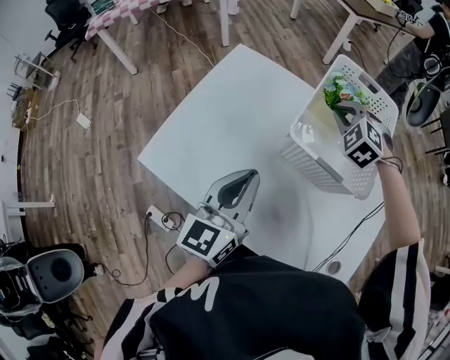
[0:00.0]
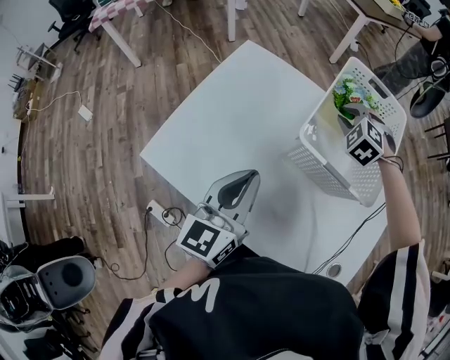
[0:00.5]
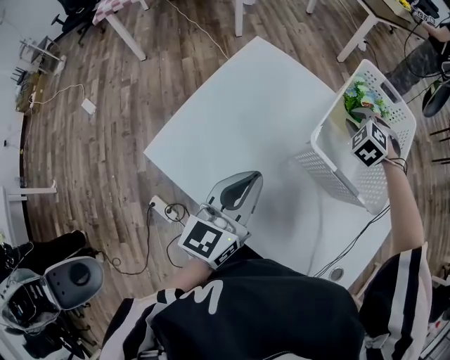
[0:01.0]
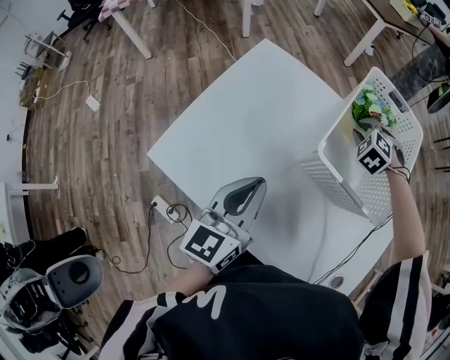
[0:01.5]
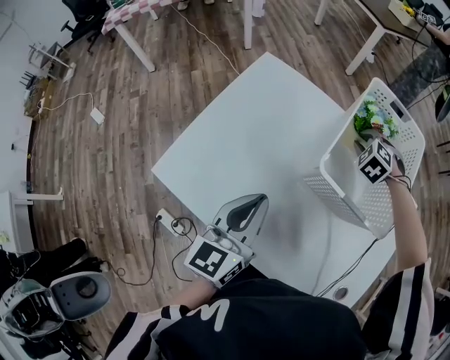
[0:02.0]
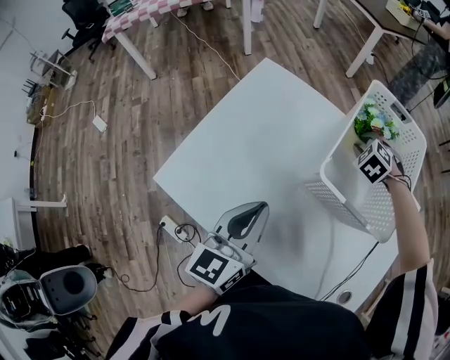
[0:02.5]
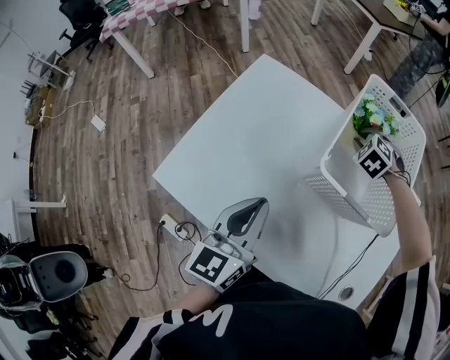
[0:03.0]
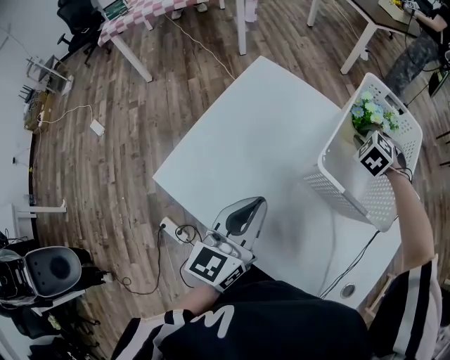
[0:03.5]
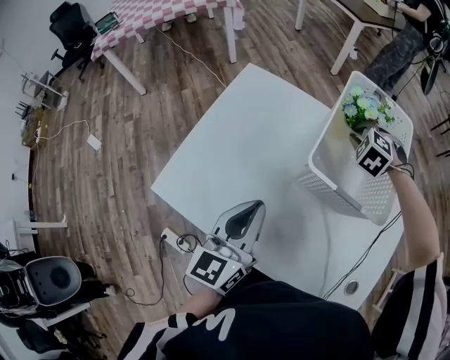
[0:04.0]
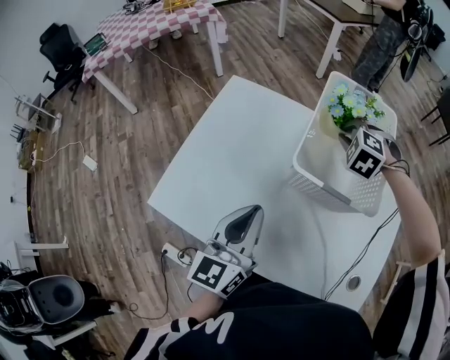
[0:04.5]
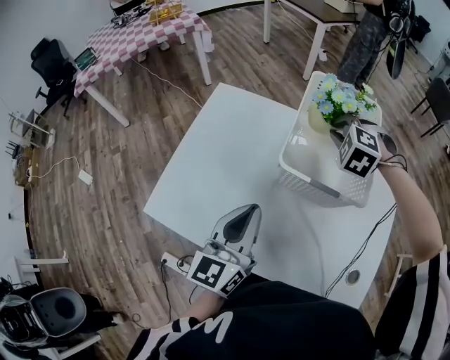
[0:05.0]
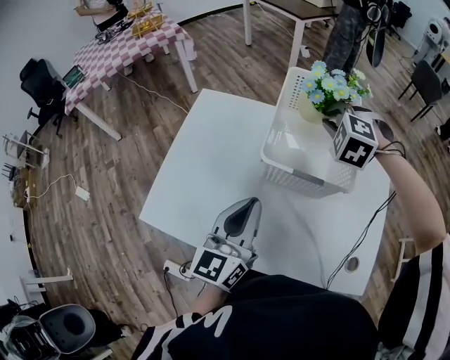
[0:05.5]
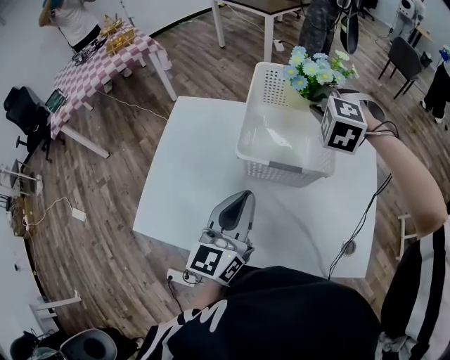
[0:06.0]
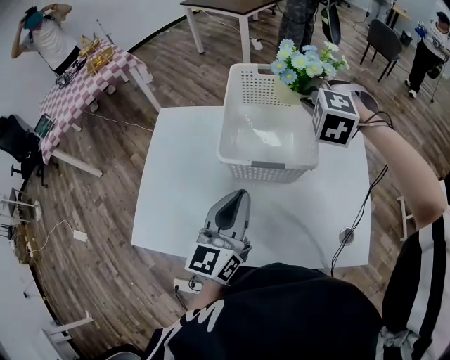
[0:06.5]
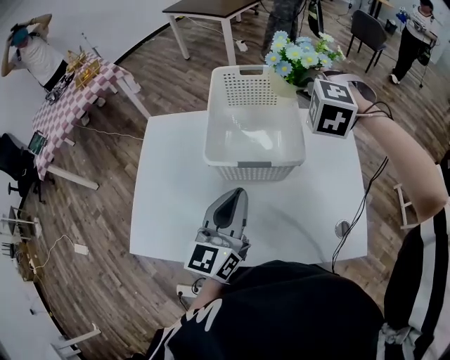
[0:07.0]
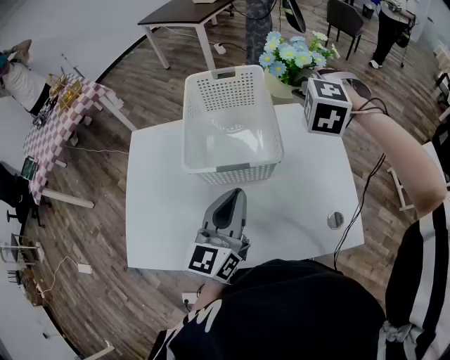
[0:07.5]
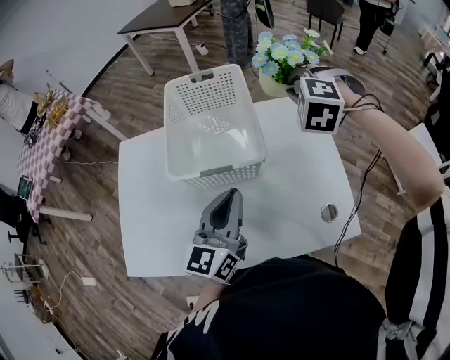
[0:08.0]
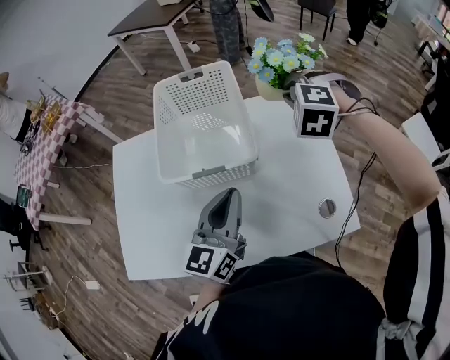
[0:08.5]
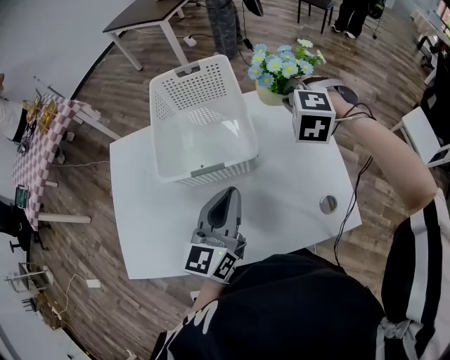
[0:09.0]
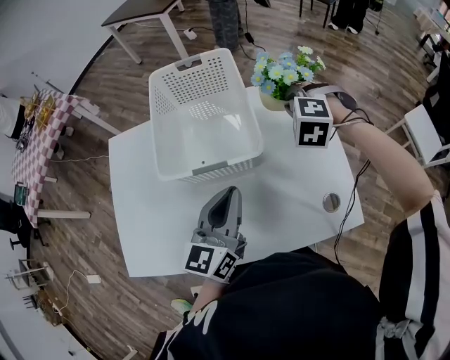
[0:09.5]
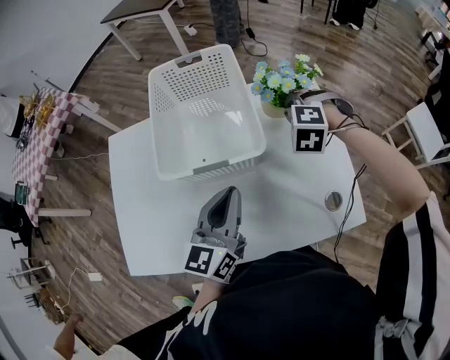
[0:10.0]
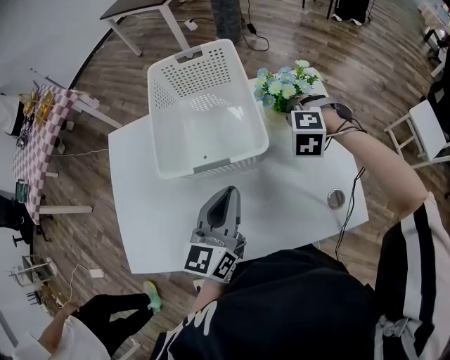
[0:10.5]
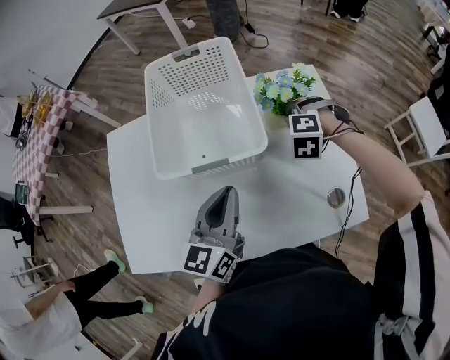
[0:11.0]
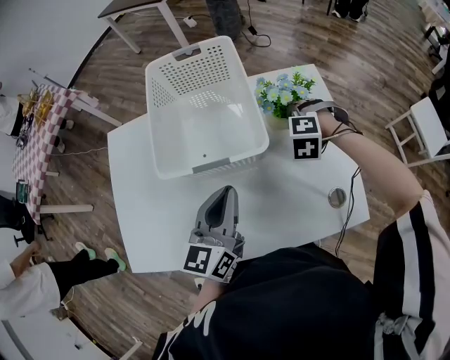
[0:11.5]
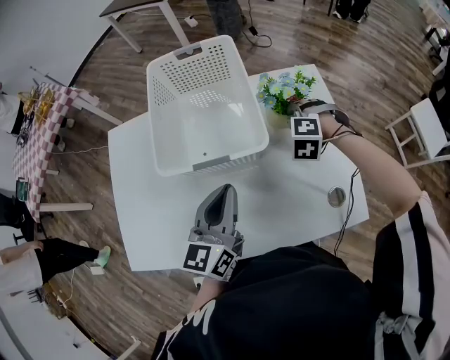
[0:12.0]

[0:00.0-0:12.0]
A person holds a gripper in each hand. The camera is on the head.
0:00.0 to 0:02.0: The right gripper shifts about 10 cm downward.
0:02.0 to 0:04.0: The grippers make only small movements.
0:04.0 to 0:06.0: The right gripper travels upward, to the right and backward by some 15 cm; the left gripper shifts roughly 10 cm to the right.
0:06.0 to 0:08.0: The left gripper shifts roughly 10 cm to the right. The right gripper moves to the right, roughly 15 cm.
0:08.0 to 0:10.0: The right gripper is displaced downward by some 15 cm.
0:10.0 to 0:12.0: The right gripper is displaced downward by roughly 5 cm.

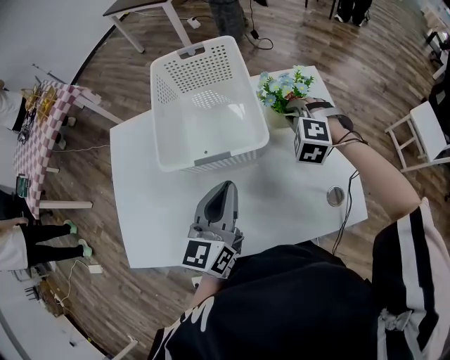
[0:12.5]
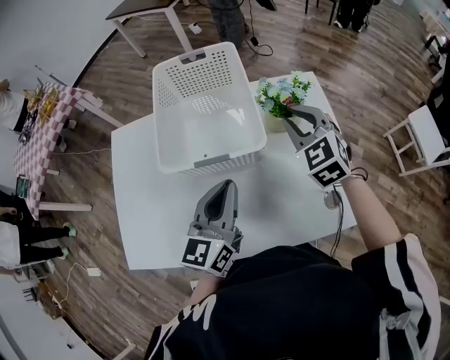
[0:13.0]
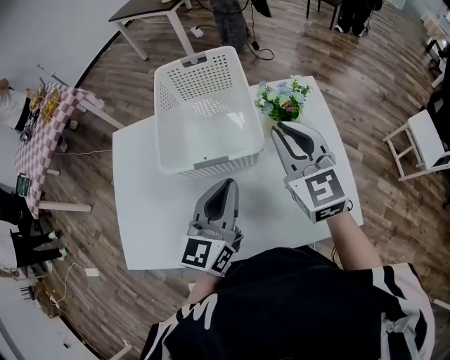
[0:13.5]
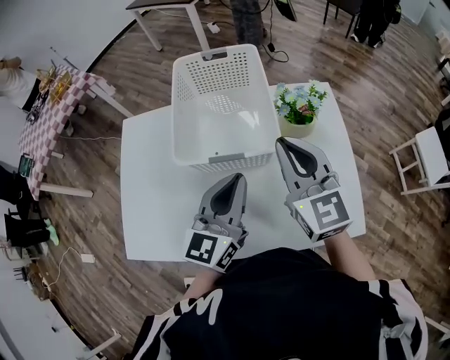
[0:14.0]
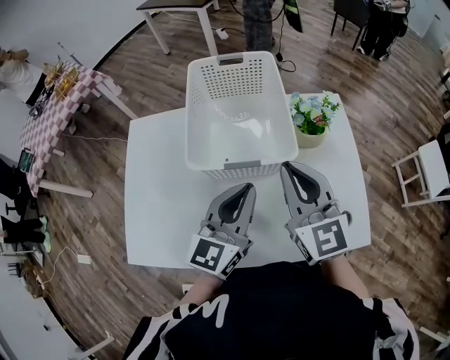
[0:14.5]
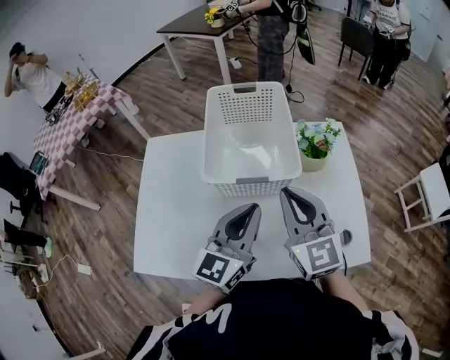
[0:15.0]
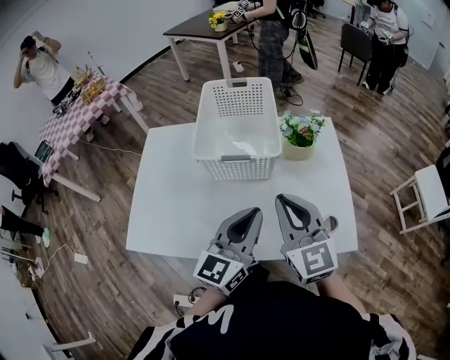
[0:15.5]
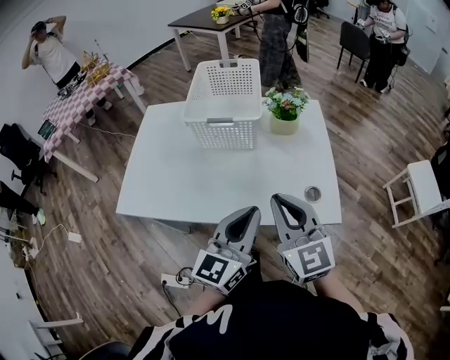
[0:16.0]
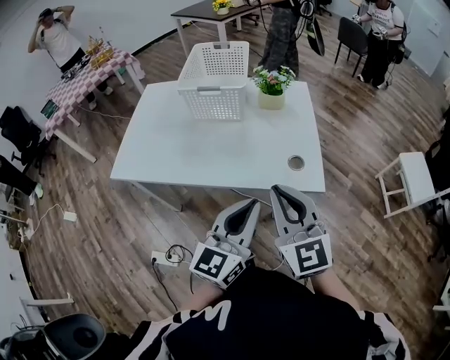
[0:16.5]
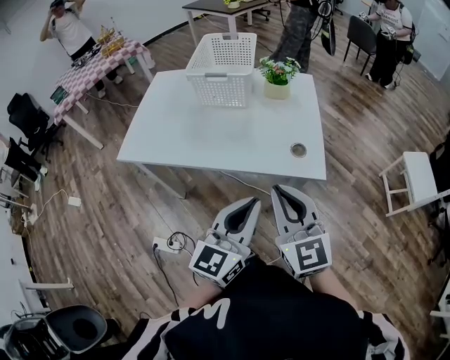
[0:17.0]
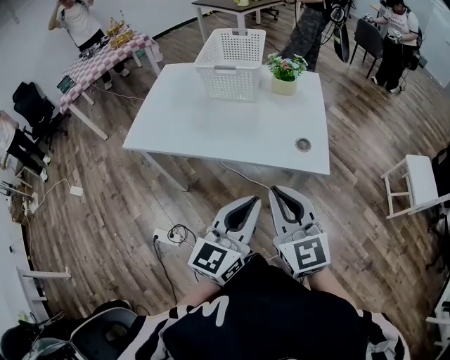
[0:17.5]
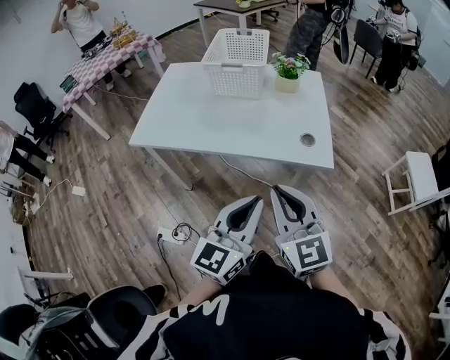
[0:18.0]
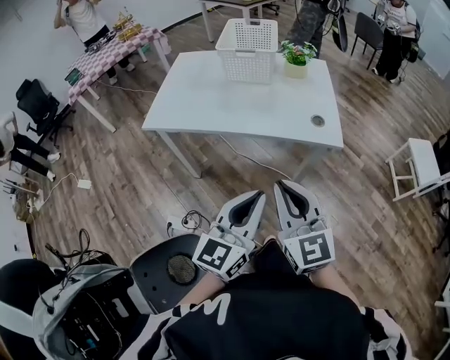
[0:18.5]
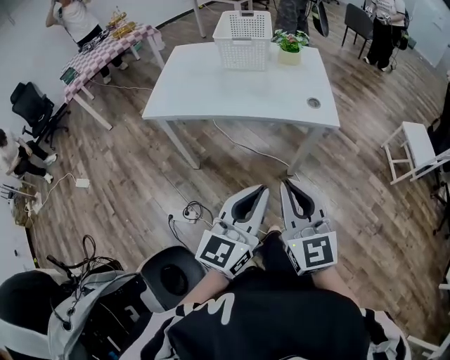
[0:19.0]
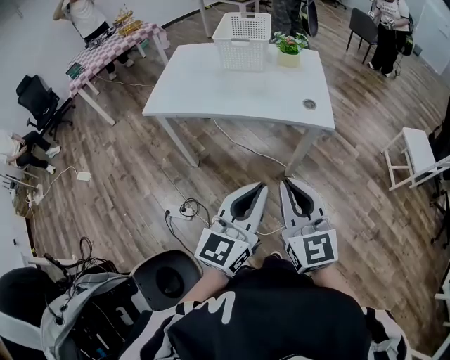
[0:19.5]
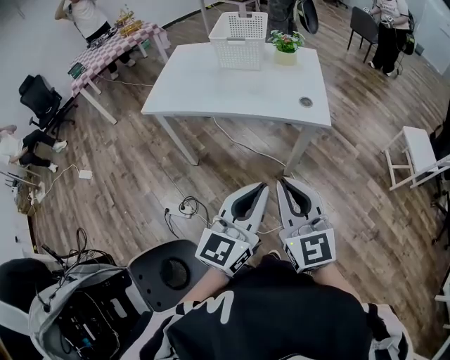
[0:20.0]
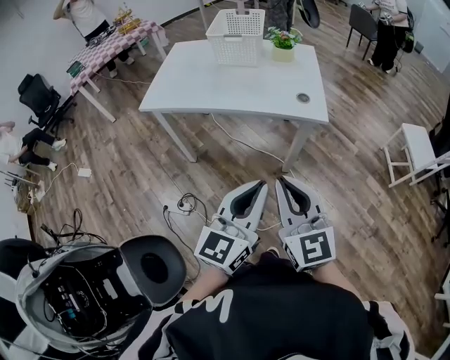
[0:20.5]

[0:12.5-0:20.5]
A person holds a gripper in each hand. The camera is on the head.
0:12.5 to 0:14.5: The right gripper is displaced upward, backward and to the left by roughly 25 cm, and angles its fingers upward, by approximately 50 degrees.
0:14.5 to 0:16.5: The right gripper moves backward, roughly 30 cm. Meanwhile the left gripper goes approximately 35 cm backward and to the right.
0:16.5 to 0:18.5: Both grippers travel together backward and to the left, approximately 20 cm.
0:18.5 to 0:20.5: Both grippers travel together backward and to the right, about 10 cm.

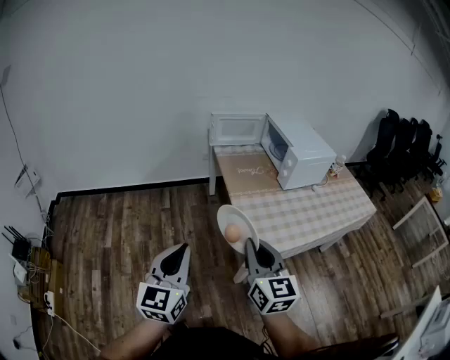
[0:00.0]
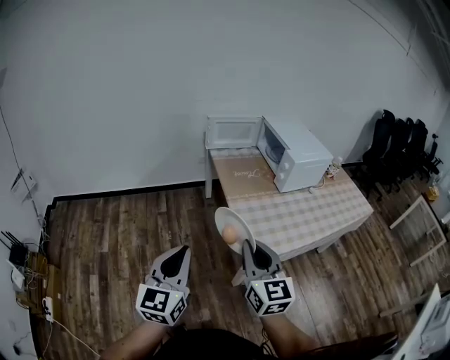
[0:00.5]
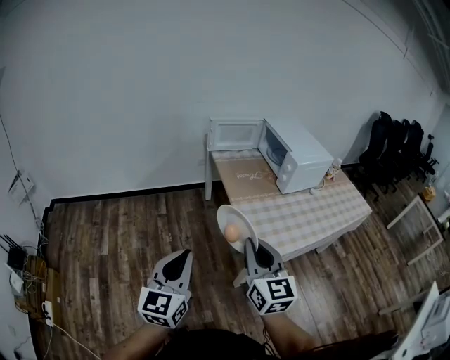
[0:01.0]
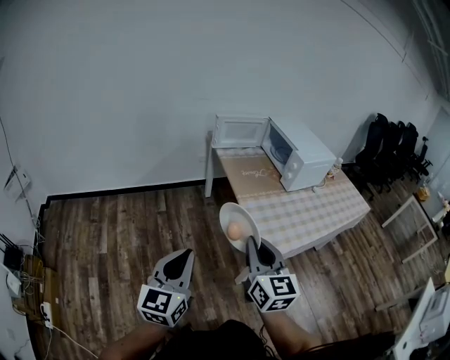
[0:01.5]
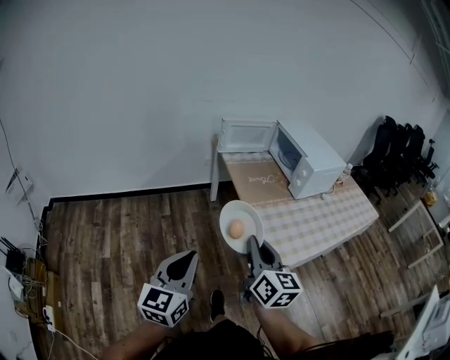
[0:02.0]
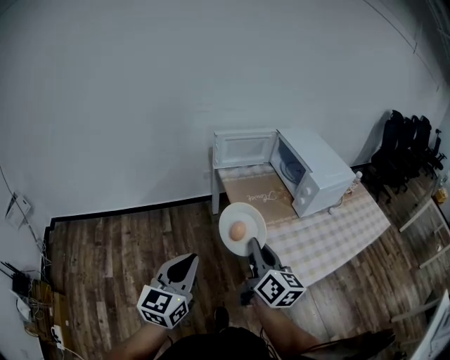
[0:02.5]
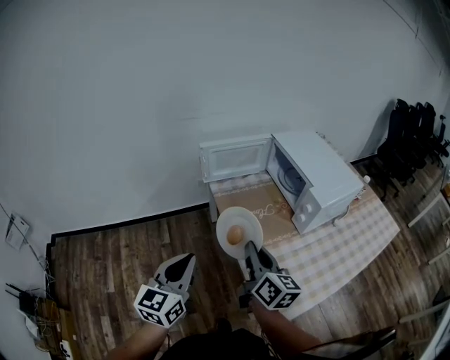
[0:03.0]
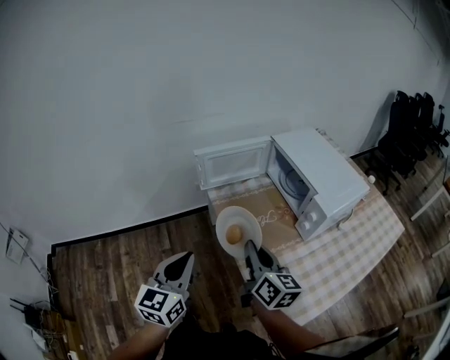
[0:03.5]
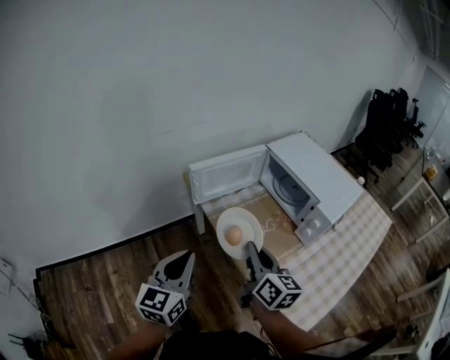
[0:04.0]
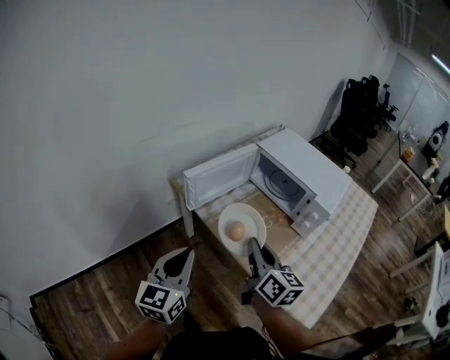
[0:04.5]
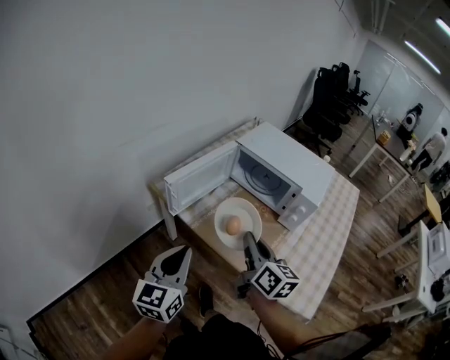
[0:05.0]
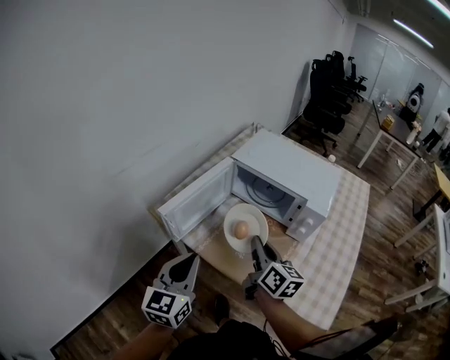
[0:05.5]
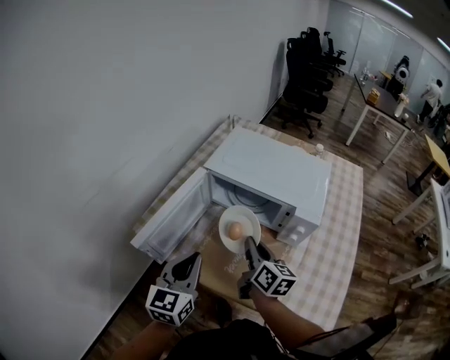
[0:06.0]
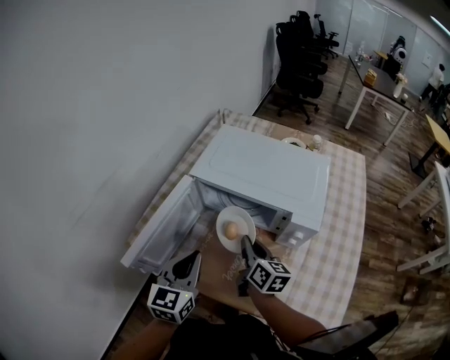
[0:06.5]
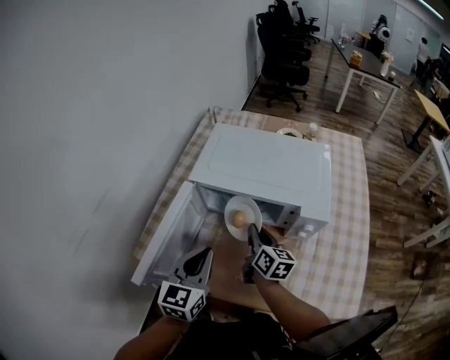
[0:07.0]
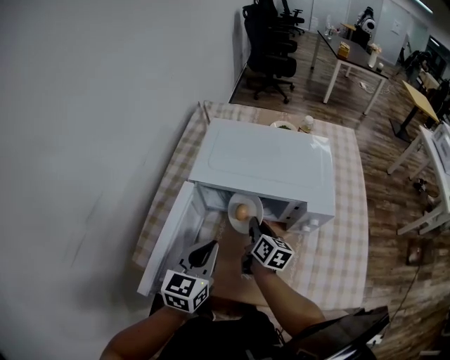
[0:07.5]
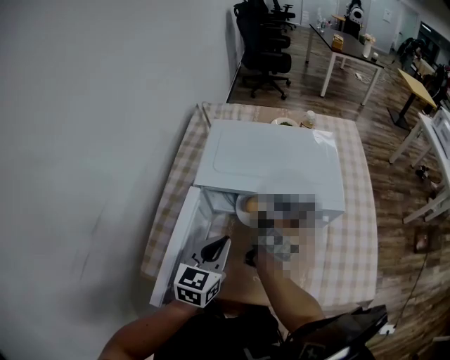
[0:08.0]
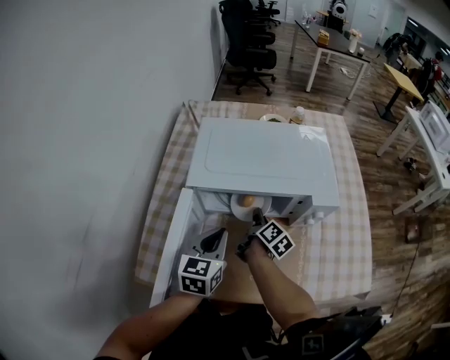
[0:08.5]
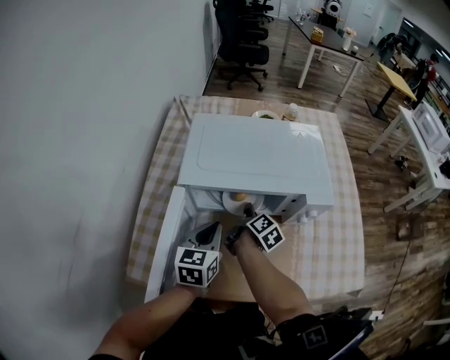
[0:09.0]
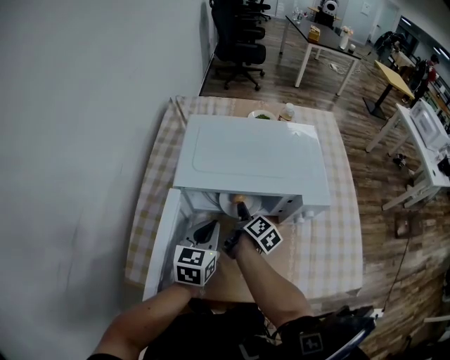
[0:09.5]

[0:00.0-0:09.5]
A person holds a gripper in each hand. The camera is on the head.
0:00.0 to 0:02.0: The right gripper is displaced to the left and forward by approximately 10 cm, while the left gripper heads to the left, covering about 10 cm.
0:02.0 to 0:04.0: The two grippers go some 40 cm forward.
0:04.0 to 0:05.5: The two grippers go approximately 15 cm forward. The right gripper rotates about 30 degrees, while the left gripper turns by about 20 degrees.
0:05.5 to 0:07.5: The right gripper changes place by some 25 cm, and changes its angle by approximately 30 degrees, while the left gripper moves some 25 cm, and rotates about 30 degrees.
0:07.5 to 0:09.5: The left gripper moves forward and downward, some 10 cm. The right gripper moves downward, roughly 5 cm, rotates approximately 40 degrees, and opens up.
